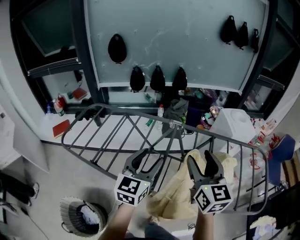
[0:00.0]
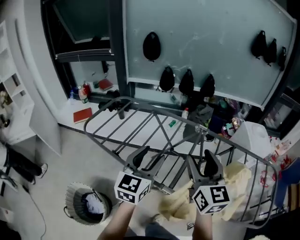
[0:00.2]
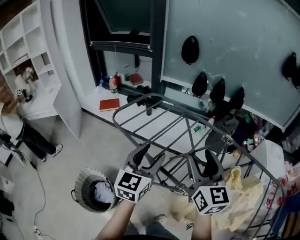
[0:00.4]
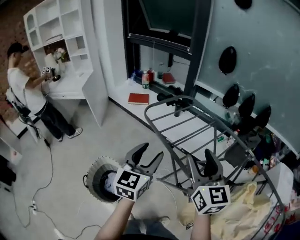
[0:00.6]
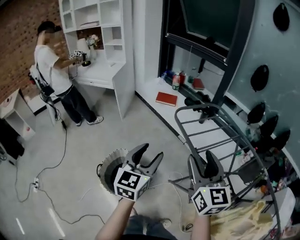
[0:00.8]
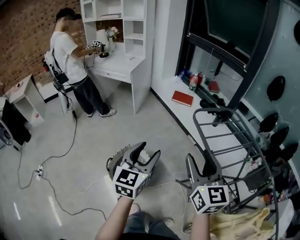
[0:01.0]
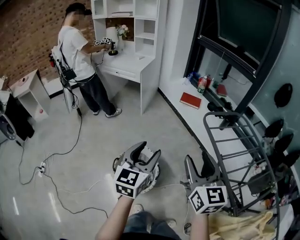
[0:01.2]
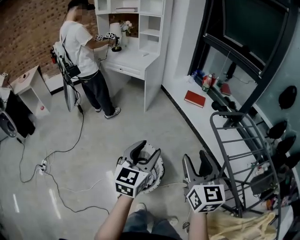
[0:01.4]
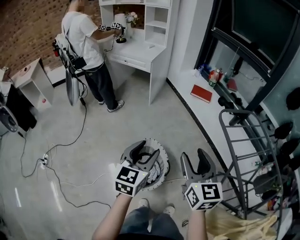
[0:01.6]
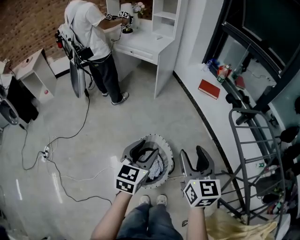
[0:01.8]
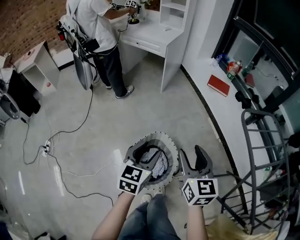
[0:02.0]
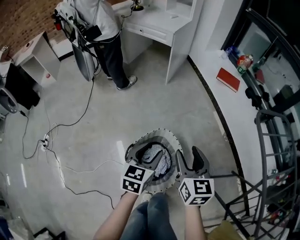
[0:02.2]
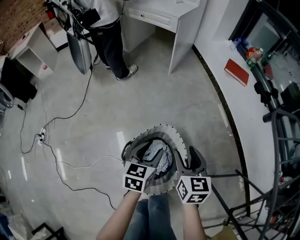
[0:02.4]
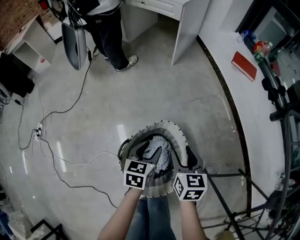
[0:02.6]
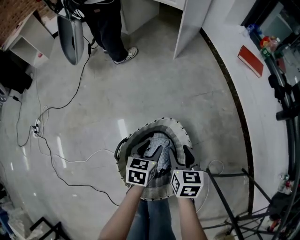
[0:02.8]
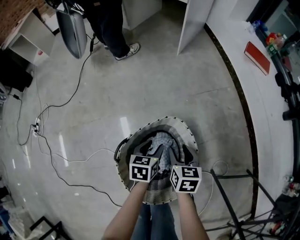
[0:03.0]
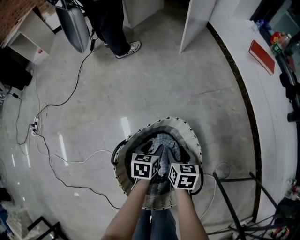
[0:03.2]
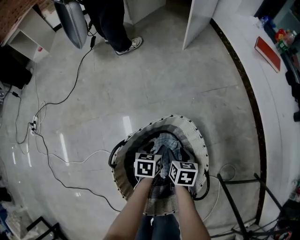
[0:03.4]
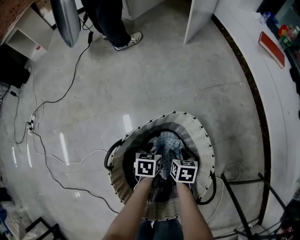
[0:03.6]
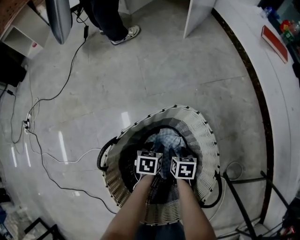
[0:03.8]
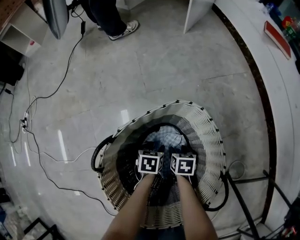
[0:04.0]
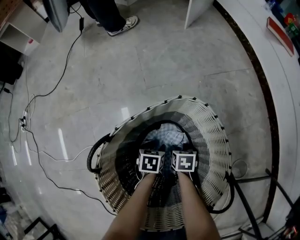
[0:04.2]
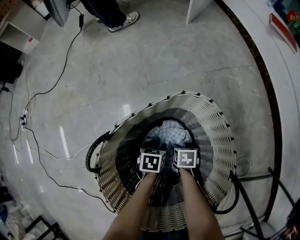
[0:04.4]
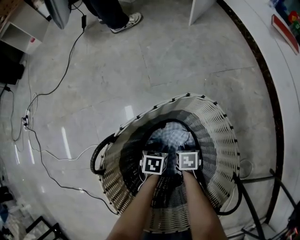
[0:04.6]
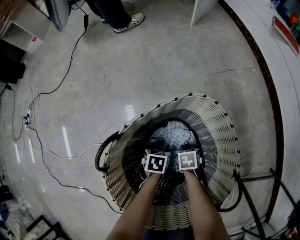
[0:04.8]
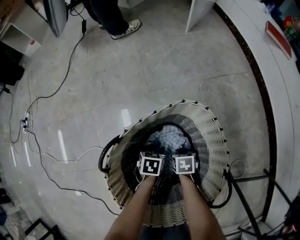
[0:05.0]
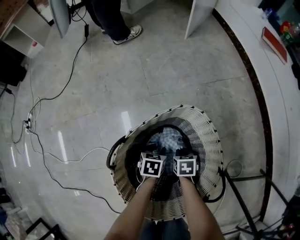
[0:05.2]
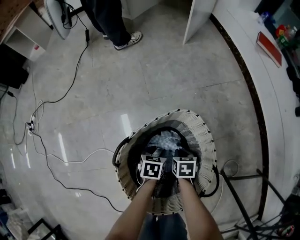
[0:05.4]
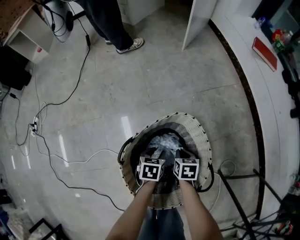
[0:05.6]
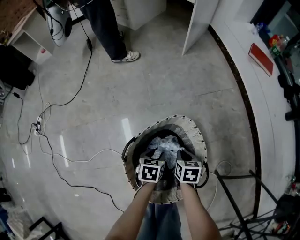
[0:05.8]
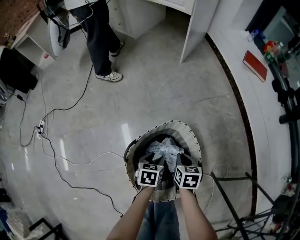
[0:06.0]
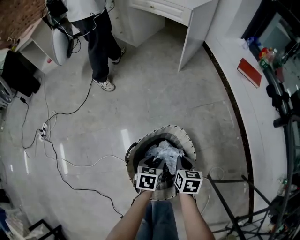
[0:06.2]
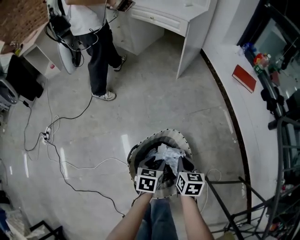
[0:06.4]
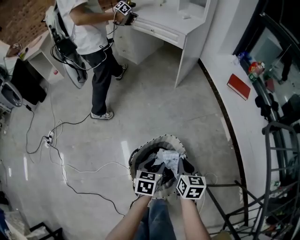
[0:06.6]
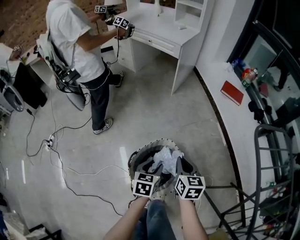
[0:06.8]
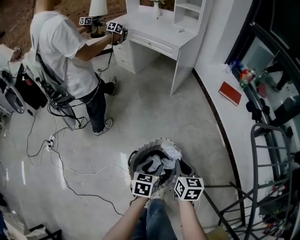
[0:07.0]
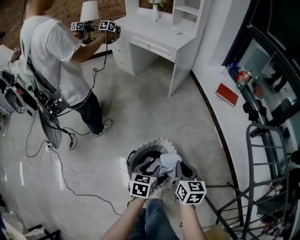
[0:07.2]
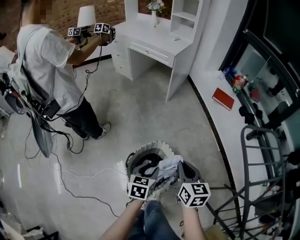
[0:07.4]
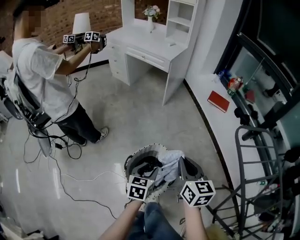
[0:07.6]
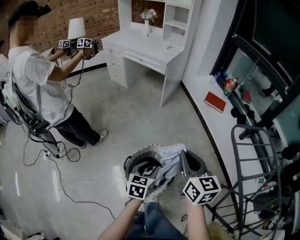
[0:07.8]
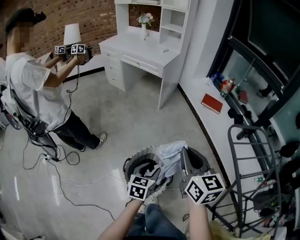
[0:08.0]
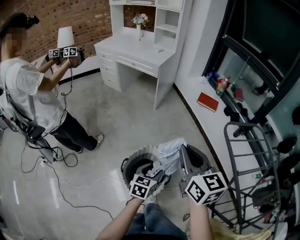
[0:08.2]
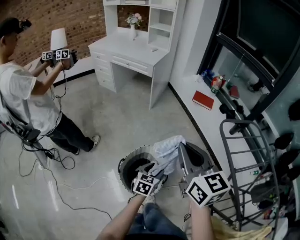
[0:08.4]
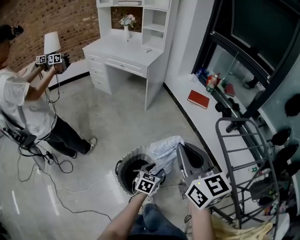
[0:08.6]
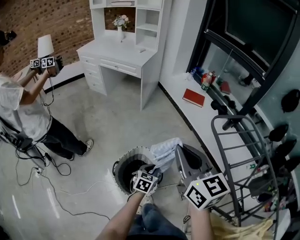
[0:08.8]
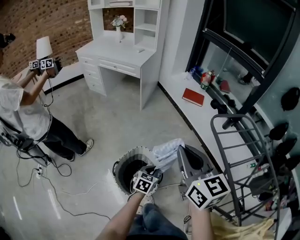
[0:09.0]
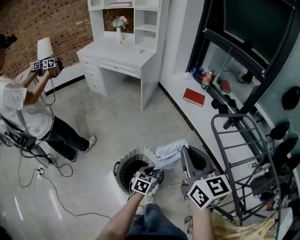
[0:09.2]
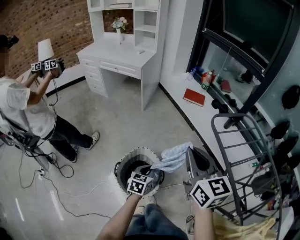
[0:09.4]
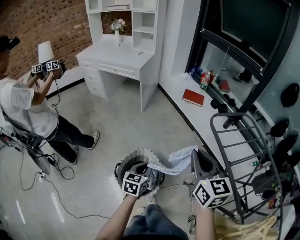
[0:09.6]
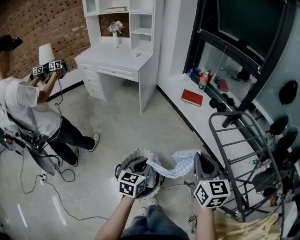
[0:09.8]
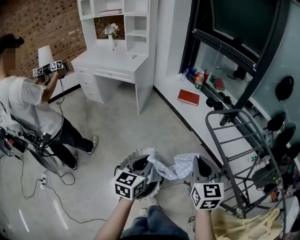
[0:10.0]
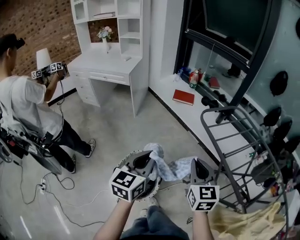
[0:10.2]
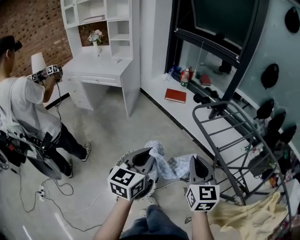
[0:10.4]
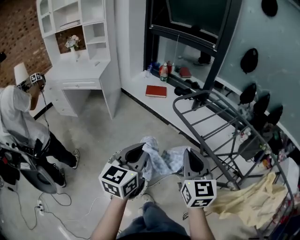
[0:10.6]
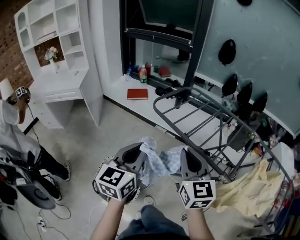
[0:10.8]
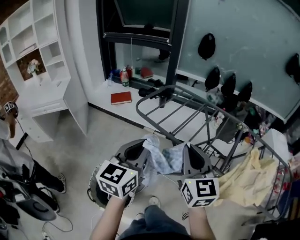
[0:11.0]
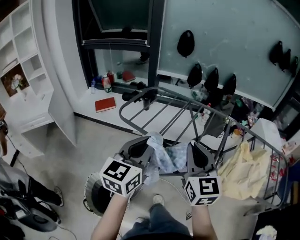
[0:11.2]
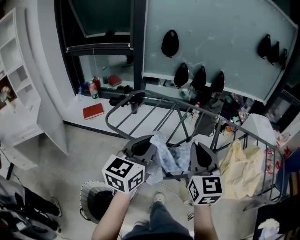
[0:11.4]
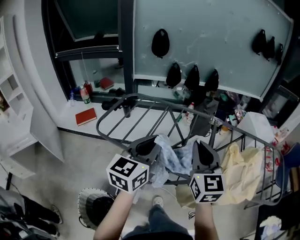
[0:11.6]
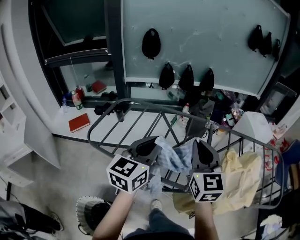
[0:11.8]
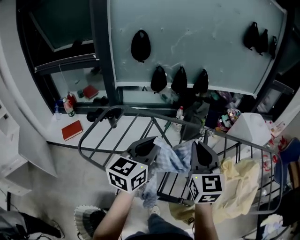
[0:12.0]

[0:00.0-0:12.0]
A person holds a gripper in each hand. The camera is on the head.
0:00.0 to 0:01.6: Both grippers are carried about 70 cm. The right gripper swivels roughly 60 degrees. The left gripper swivels approximately 70 degrees.
0:01.6 to 0:03.0: Both grippers move downward, approximately 60 cm. The right gripper points its fingers some 30 degrees further downward. The left gripper tips its fingers downward by approximately 30 degrees.
0:03.0 to 0:04.4: The two grippers go approximately 35 cm downward. The right gripper changes its angle by roughly 30 degrees.
0:04.4 to 0:06.0: Both grippers move upward, about 35 cm. The right gripper closes its fingers.
0:06.0 to 0:07.6: Both grippers move upward, some 40 cm. The right gripper tilts its fingers some 30 degrees upward; the left gripper rotates some 20 degrees.
0:07.6 to 0:09.0: The right gripper goes about 15 cm upward, while the left gripper moves to the right, approximately 10 cm, turns by approximately 20 degrees, and closes.
0:09.0 to 0:10.4: The left gripper heads upward, covering roughly 30 cm, and turns by roughly 30 degrees; the right gripper shifts roughly 15 cm to the right and backward, and turns by about 30 degrees.
0:10.4 to 0:12.0: Both grippers are carried some 50 cm. The left gripper swivels approximately 50 degrees. Meanwhile the right gripper swivels approximately 50 degrees.

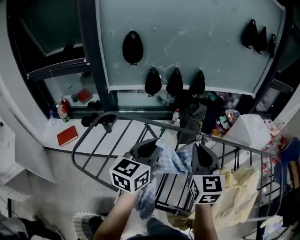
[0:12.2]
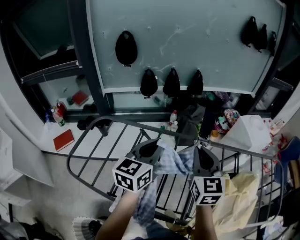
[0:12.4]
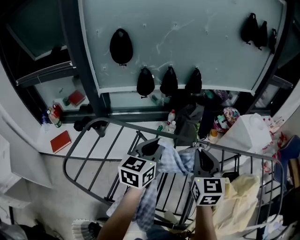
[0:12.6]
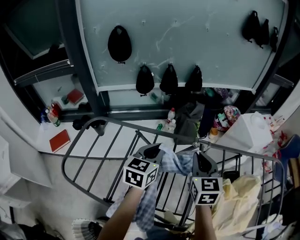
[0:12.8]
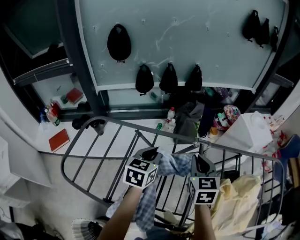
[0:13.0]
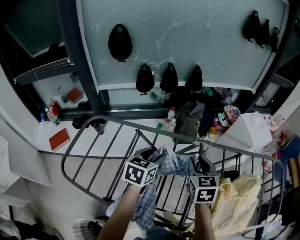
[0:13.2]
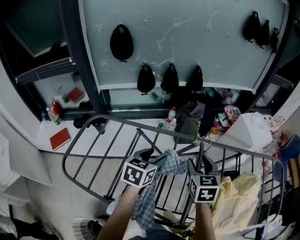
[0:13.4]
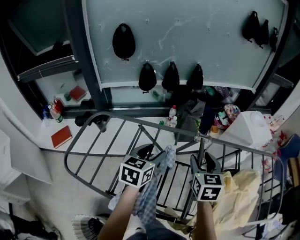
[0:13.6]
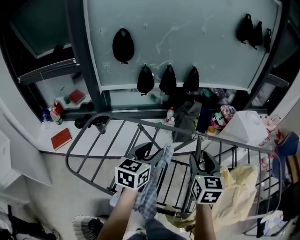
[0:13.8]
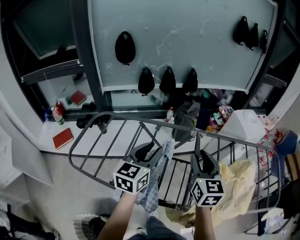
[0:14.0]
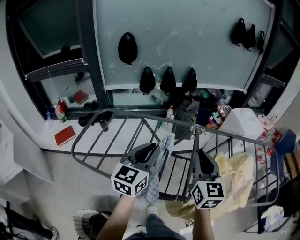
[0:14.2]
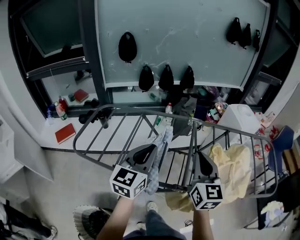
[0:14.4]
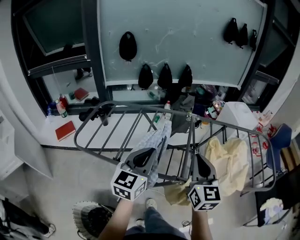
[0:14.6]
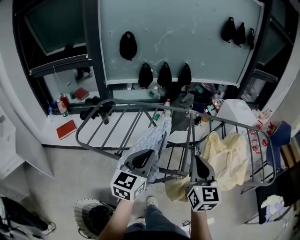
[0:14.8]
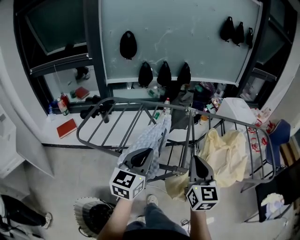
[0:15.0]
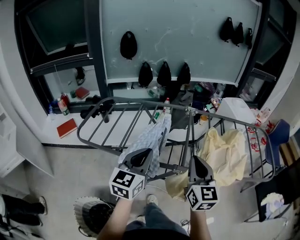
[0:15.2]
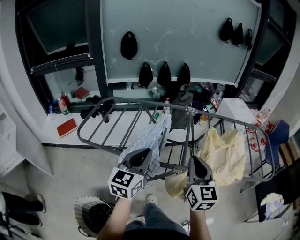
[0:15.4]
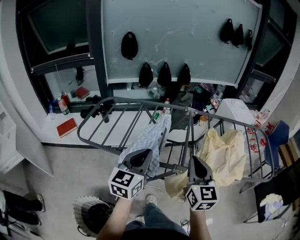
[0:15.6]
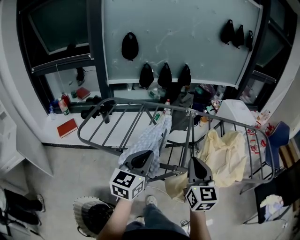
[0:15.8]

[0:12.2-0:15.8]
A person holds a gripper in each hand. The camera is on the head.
0:12.2 to 0:14.0: The right gripper moves approximately 10 cm downward and comes back, and opens; the left gripper reaches about 15 cm downward, then returns, and opens.
0:14.0 to 0:15.8: The grippers both shift backward by about 20 cm. The left gripper closes its fingers. The right gripper closes.

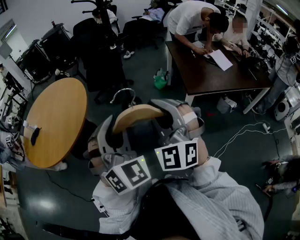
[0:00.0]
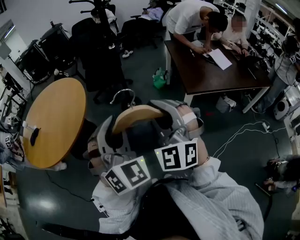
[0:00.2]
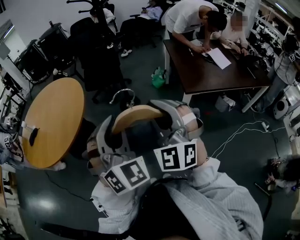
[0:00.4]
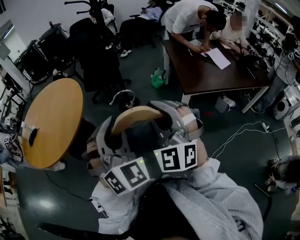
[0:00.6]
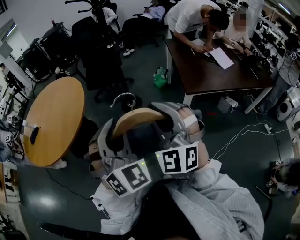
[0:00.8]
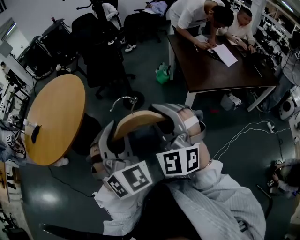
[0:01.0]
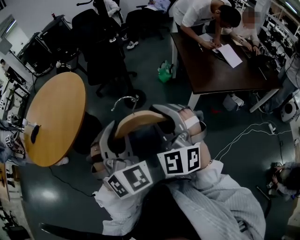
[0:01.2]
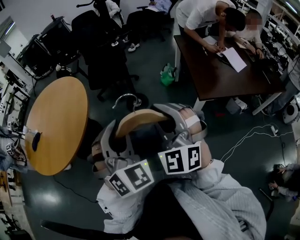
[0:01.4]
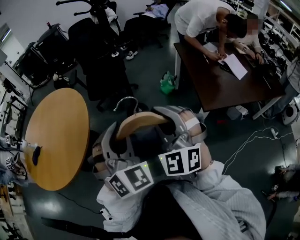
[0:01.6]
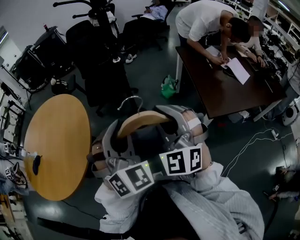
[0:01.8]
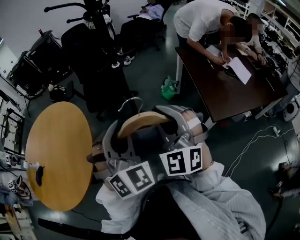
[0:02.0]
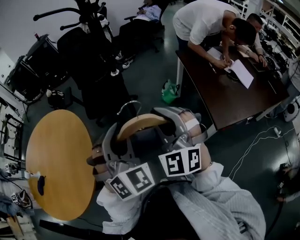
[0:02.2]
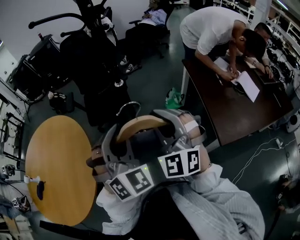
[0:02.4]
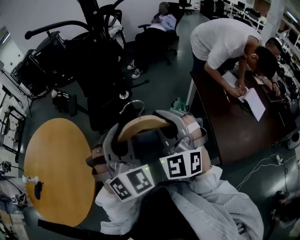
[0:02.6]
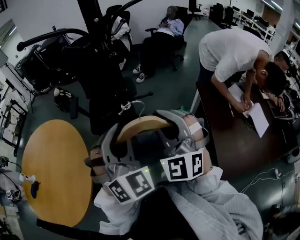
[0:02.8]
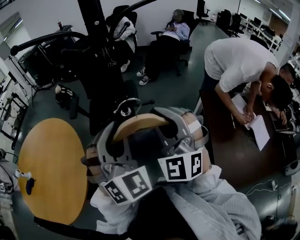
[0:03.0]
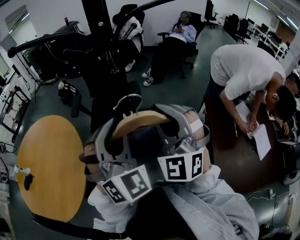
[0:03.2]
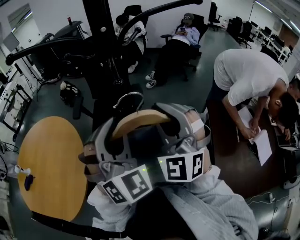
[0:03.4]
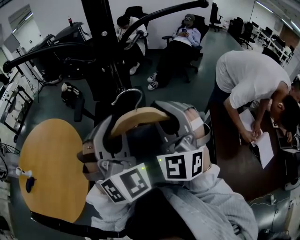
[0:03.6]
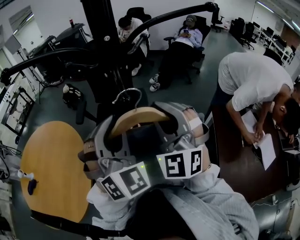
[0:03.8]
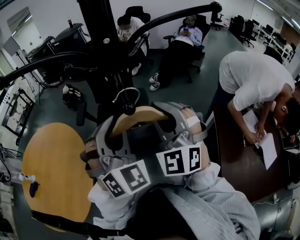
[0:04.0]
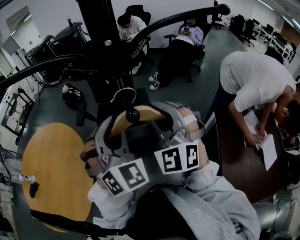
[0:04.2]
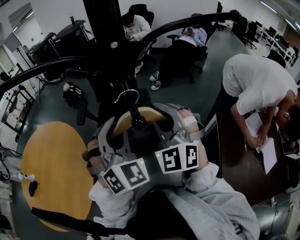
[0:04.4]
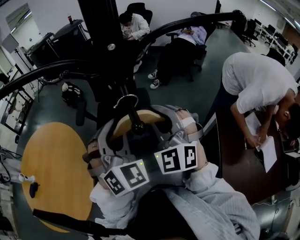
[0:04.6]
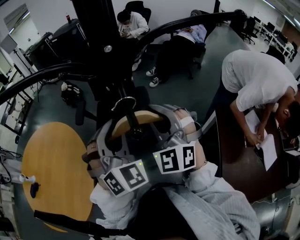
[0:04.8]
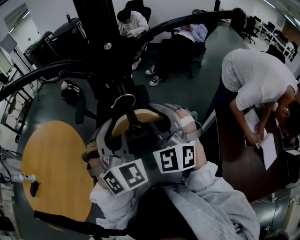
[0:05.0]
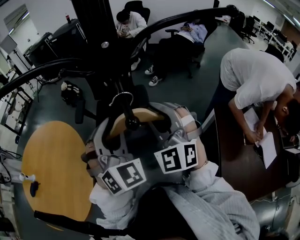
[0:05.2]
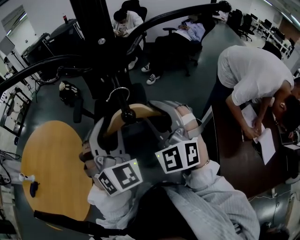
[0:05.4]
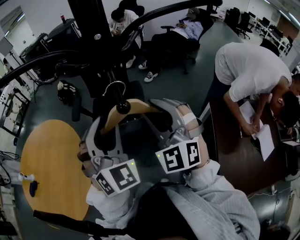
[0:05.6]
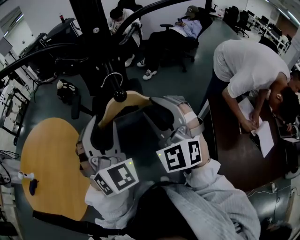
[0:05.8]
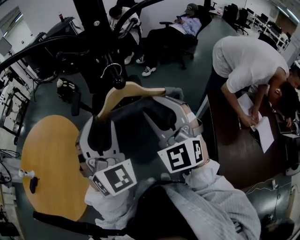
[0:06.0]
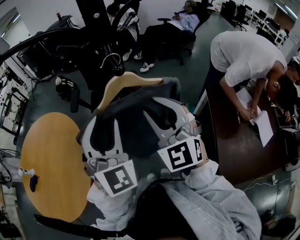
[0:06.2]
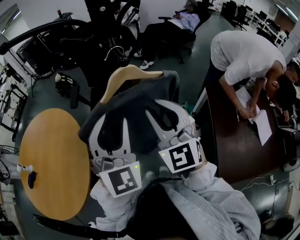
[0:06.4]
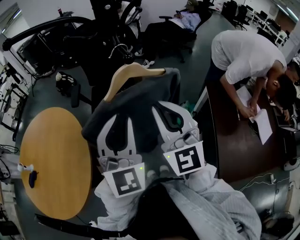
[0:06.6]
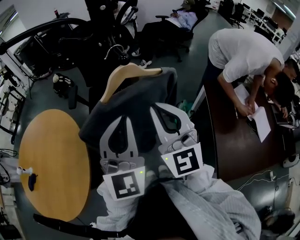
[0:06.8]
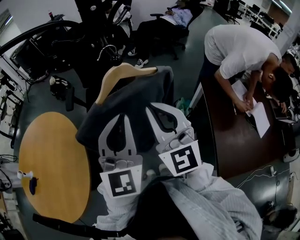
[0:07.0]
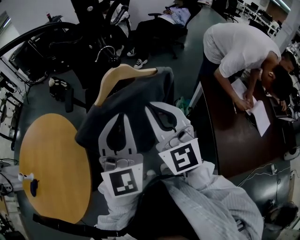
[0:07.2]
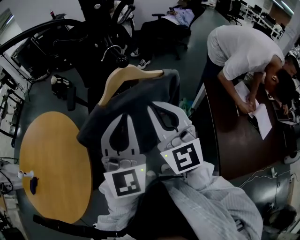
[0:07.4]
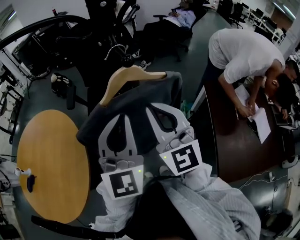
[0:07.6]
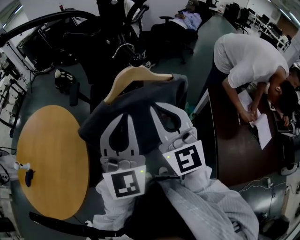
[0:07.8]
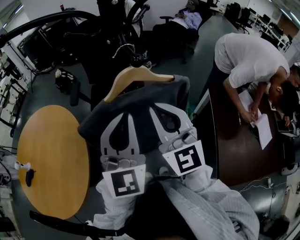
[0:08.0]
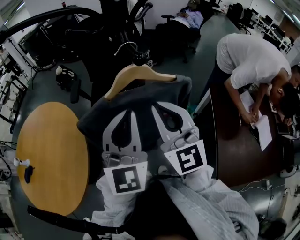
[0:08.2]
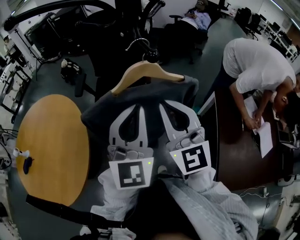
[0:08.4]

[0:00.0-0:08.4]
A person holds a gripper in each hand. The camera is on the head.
0:00.0 to 0:01.4: The two grippers go approximately 15 cm forward and downward.
0:01.4 to 0:02.8: The two grippers travel together, forward, roughly 50 cm.
0:02.8 to 0:04.2: The two grippers go about 20 cm forward.
0:04.2 to 0:05.6: The grippers make only small movements.
0:05.6 to 0:07.0: Both grippers move backward, approximately 10 cm. The right gripper rotates about 30 degrees, and closes. The left gripper rotates approximately 40 degrees, and closes its fingers.
0:07.0 to 0:08.4: The grippers move only a little.
